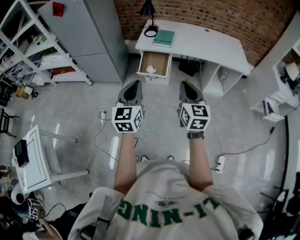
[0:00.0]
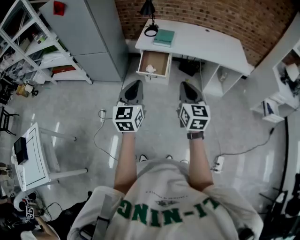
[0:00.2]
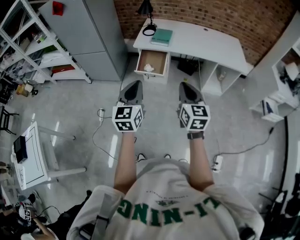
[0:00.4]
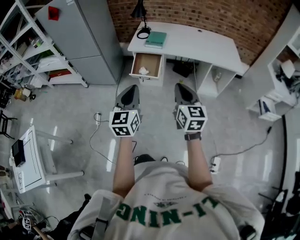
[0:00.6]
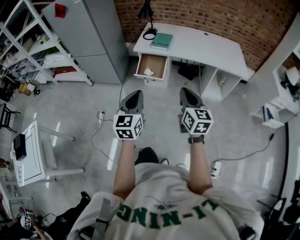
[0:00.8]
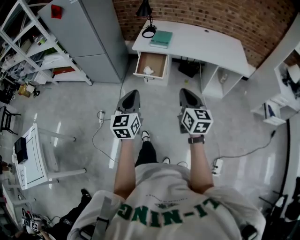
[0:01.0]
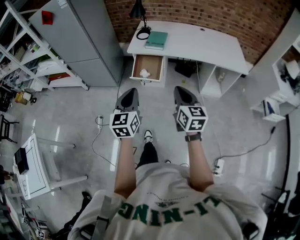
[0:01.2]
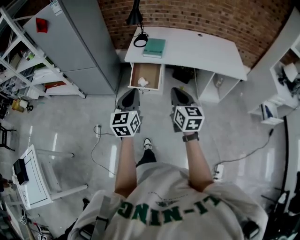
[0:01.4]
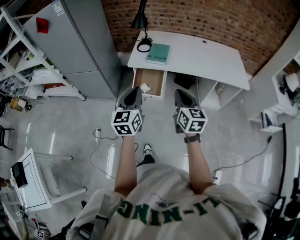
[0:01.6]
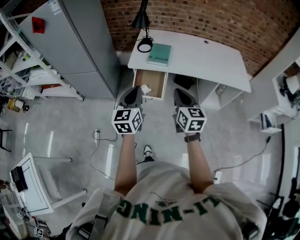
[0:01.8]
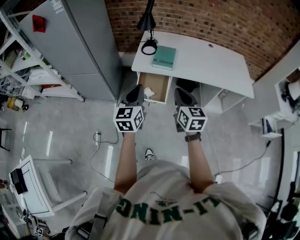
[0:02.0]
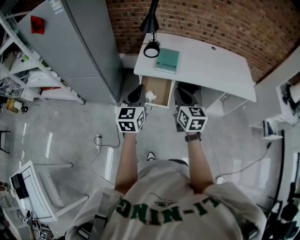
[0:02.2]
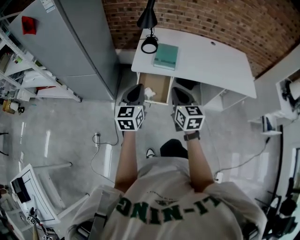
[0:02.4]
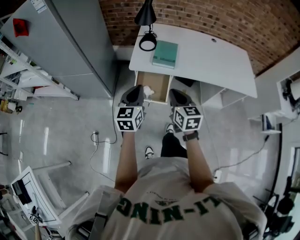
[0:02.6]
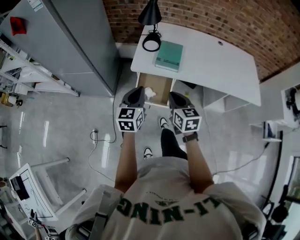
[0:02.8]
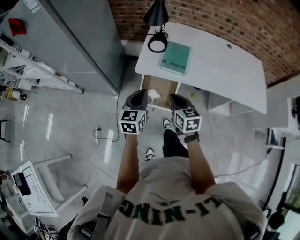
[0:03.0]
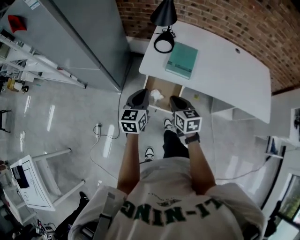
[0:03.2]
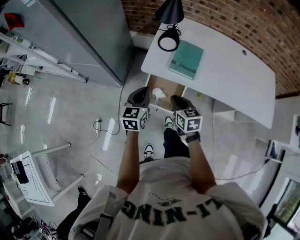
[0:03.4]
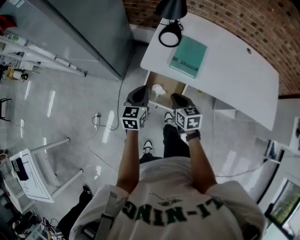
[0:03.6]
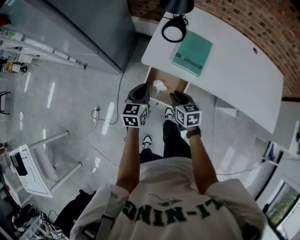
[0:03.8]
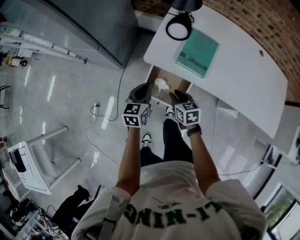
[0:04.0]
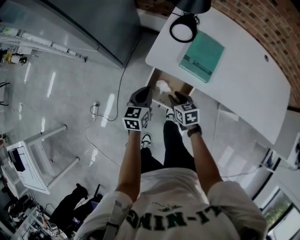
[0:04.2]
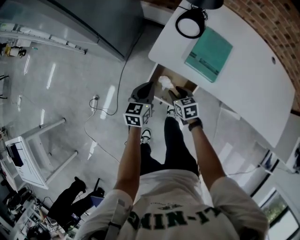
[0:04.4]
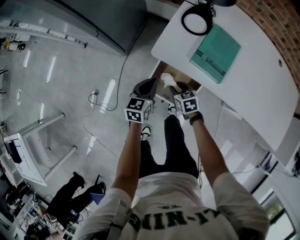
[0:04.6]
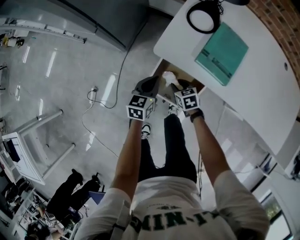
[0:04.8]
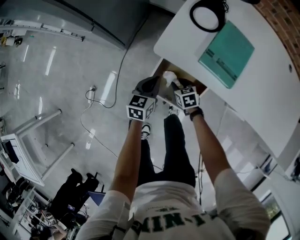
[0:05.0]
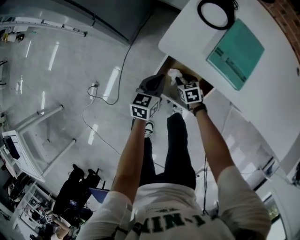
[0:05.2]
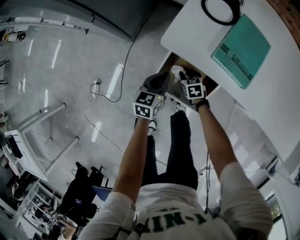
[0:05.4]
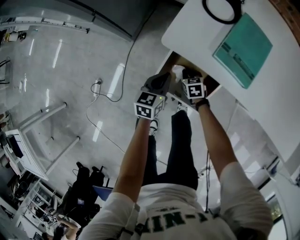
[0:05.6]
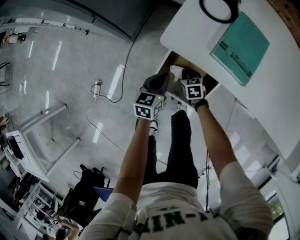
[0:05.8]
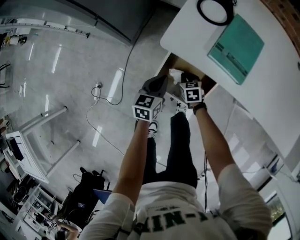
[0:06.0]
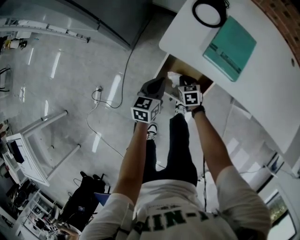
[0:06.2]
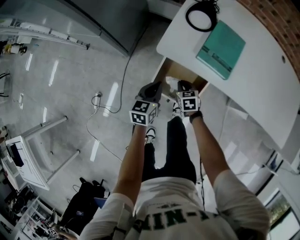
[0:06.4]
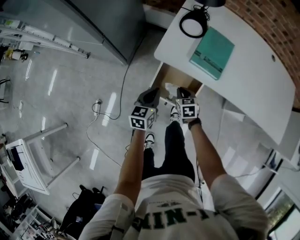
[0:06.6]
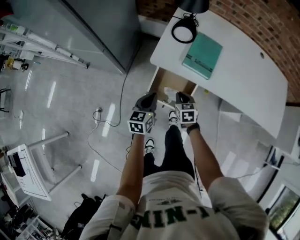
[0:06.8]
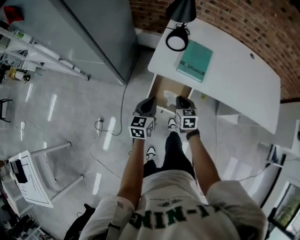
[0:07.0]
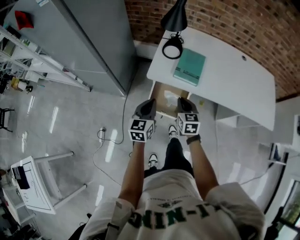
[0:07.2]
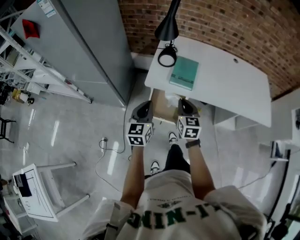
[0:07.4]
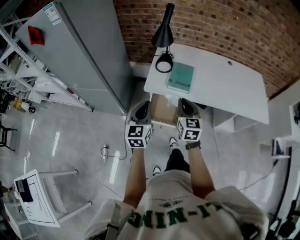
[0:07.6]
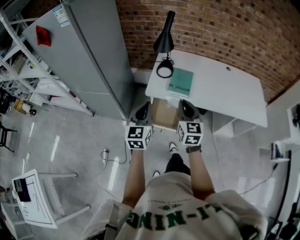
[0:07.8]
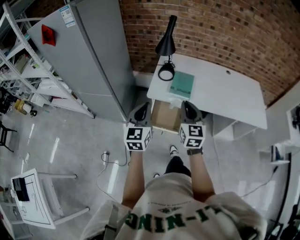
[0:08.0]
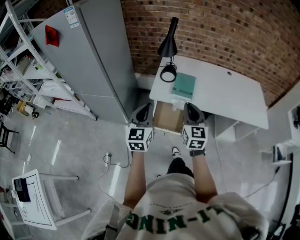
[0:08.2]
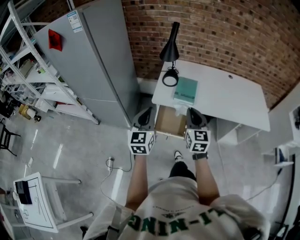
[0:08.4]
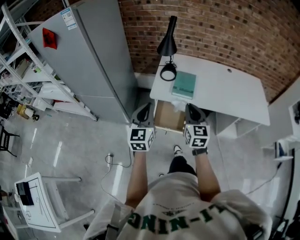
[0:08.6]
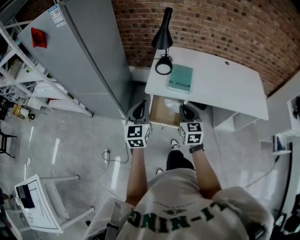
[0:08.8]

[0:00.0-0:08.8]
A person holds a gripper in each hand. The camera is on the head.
0:00.0 to 0:01.4: Both grippers move forward, about 10 cm.
0:01.4 to 0:03.0: The left gripper heads forward, covering some 35 cm, while the right gripper heads forward and downward, covering approximately 35 cm, and changes its angle by approximately 20 degrees.
0:03.0 to 0:04.4: The two grippers go roughly 25 cm downward and forward. The right gripper swivels some 30 degrees, and opens its fingers.
0:04.4 to 0:05.8: Both grippers travel together downward, roughly 15 cm. The right gripper closes its fingers.
0:05.8 to 0:07.4: The two grippers go some 40 cm upward. The left gripper changes its angle by some 30 degrees; the right gripper tips its fingers upward by about 40 degrees.
0:07.4 to 0:08.8: The left gripper travels upward by about 10 cm; the right gripper travels upward by about 5 cm.

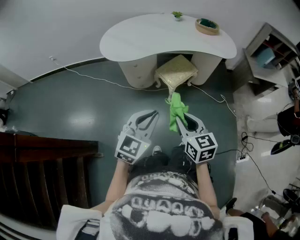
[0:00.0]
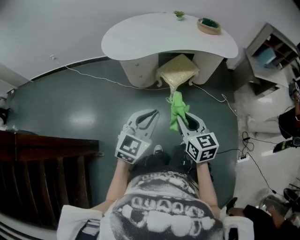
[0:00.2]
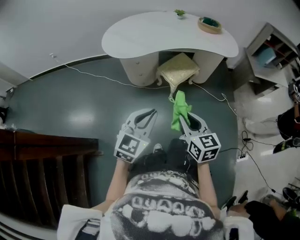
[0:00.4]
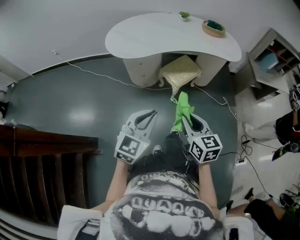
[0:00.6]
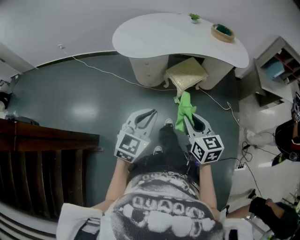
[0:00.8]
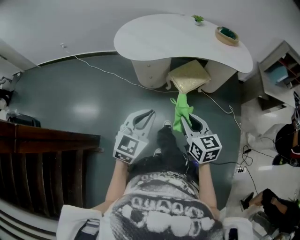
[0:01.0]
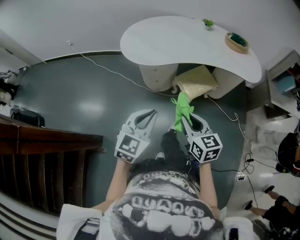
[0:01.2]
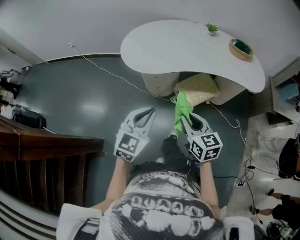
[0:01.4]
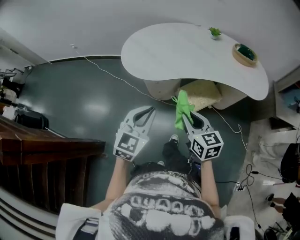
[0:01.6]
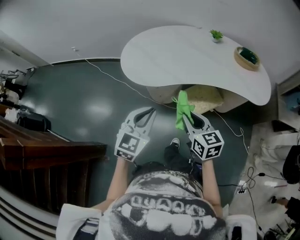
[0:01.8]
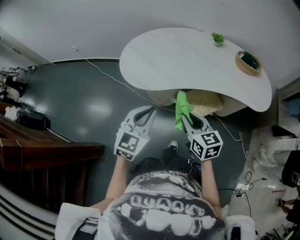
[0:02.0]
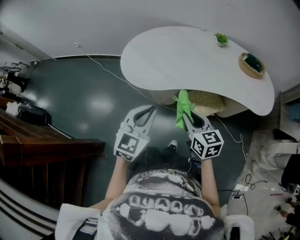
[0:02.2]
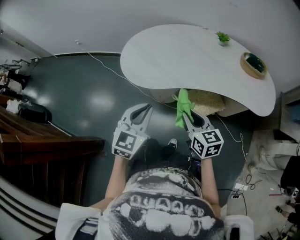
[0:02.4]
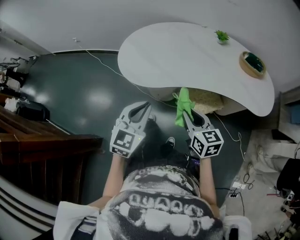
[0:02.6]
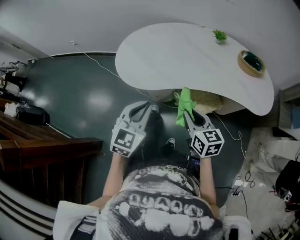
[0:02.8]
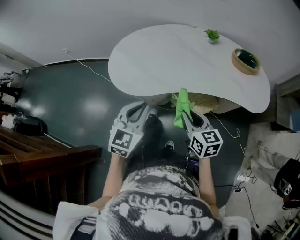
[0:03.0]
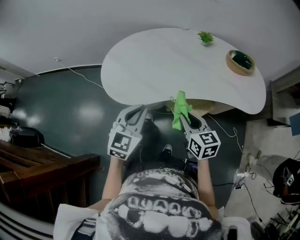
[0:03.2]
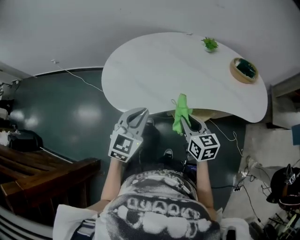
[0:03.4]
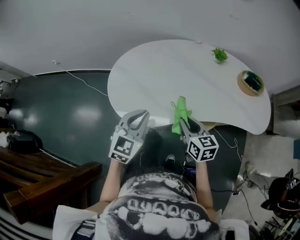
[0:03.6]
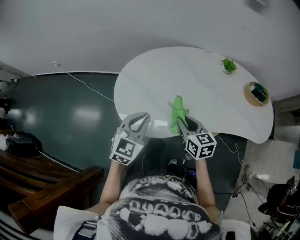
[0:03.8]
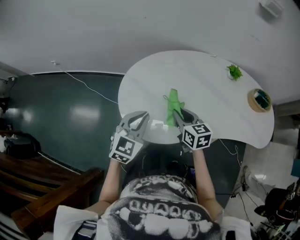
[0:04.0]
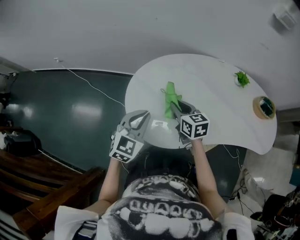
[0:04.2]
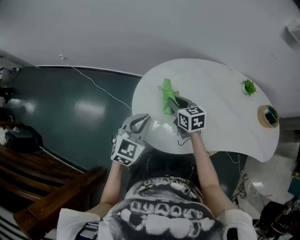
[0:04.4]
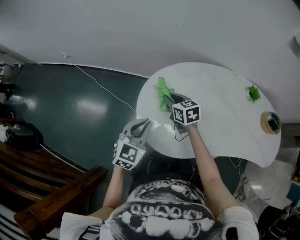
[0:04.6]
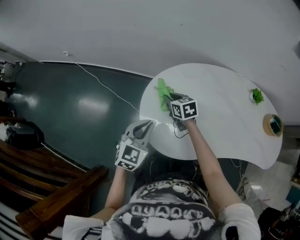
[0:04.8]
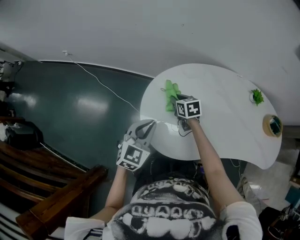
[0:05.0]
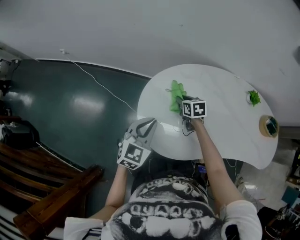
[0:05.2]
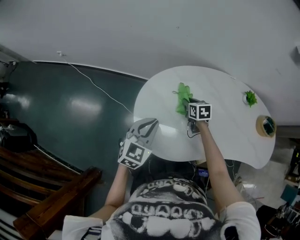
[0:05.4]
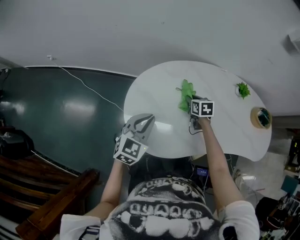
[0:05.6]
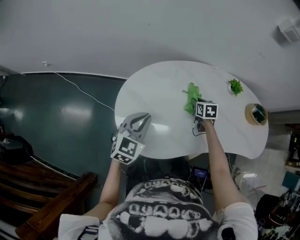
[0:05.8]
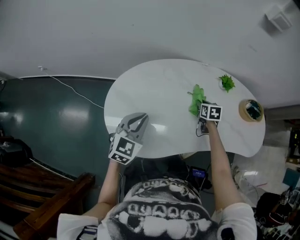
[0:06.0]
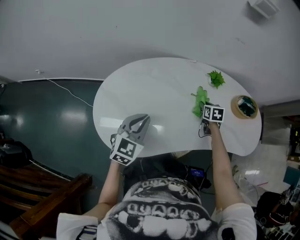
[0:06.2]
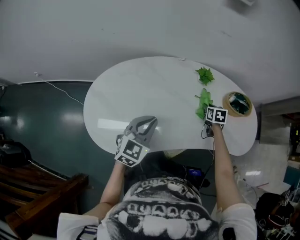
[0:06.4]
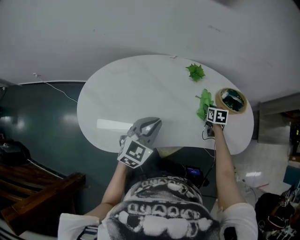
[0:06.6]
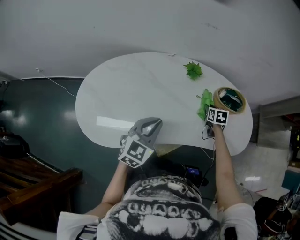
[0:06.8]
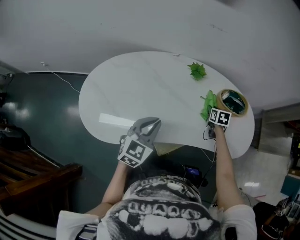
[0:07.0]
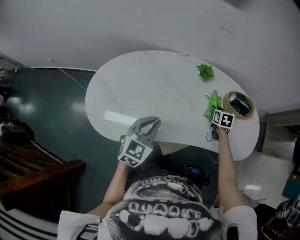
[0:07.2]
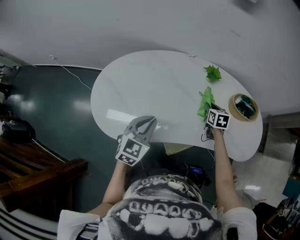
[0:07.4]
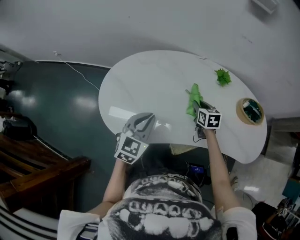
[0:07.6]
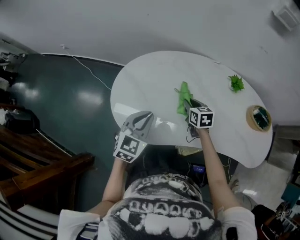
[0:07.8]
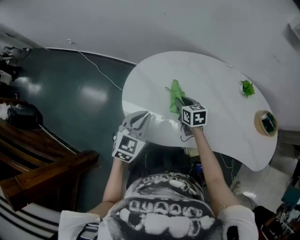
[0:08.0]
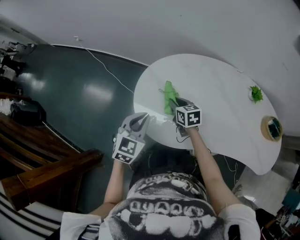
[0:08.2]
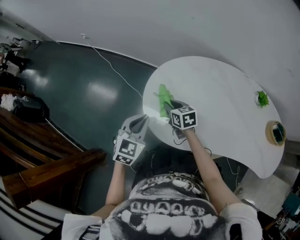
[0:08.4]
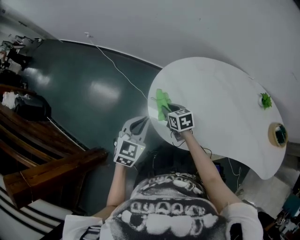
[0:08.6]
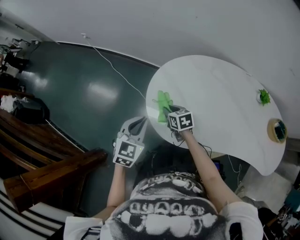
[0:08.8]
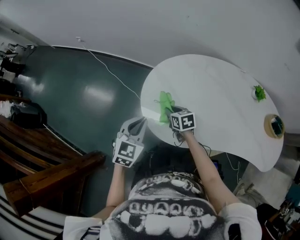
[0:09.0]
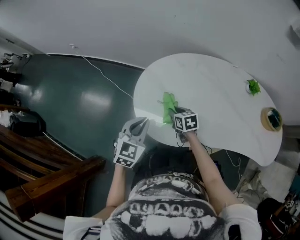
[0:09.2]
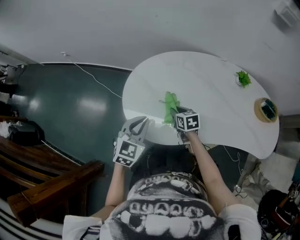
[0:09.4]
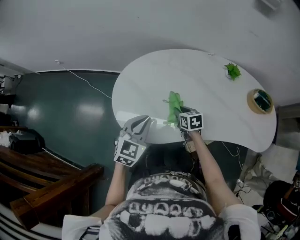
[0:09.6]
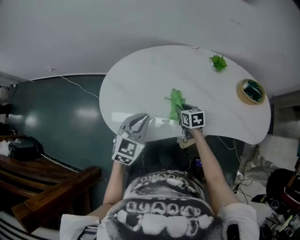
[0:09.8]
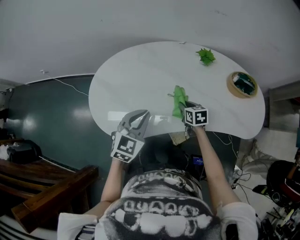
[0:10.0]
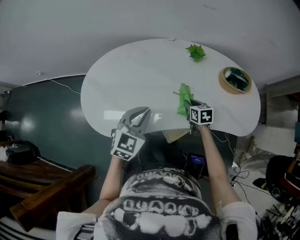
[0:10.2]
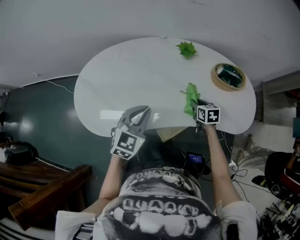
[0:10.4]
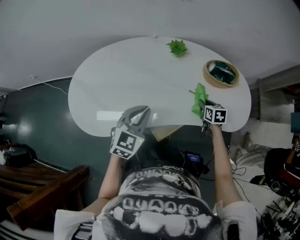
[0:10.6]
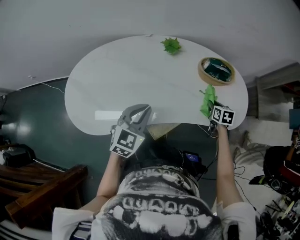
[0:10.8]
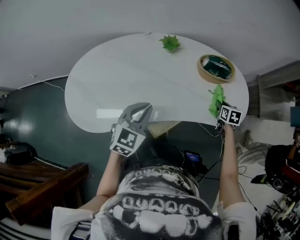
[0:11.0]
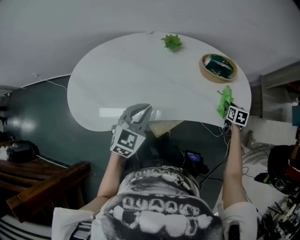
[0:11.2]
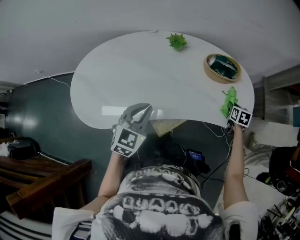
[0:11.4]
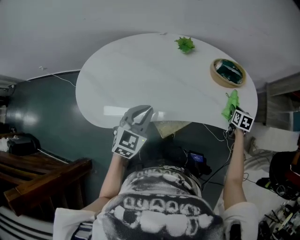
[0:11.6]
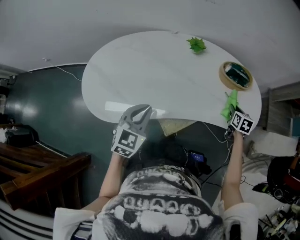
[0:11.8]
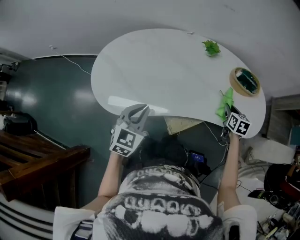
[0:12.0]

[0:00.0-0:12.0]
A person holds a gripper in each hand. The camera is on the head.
0:00.0 to 0:01.6: Both grippers move forward, some 25 cm.
0:01.6 to 0:03.0: The left gripper goes some 15 cm forward. Meanwhile the right gripper is displaced forward and to the right by roughly 15 cm.
0:03.0 to 0:04.4: The grippers both shift forward and to the left by about 40 cm.
0:04.4 to 0:06.0: The left gripper travels to the right by some 15 cm; the right gripper is displaced to the right by roughly 35 cm, and changes its angle by about 30 degrees.
0:06.0 to 0:07.6: The right gripper moves roughly 30 cm to the right and comes back. The left gripper moves to the right, roughly 15 cm.
0:07.6 to 0:09.0: The right gripper moves approximately 40 cm, and changes its angle by approximately 20 degrees. Meanwhile the left gripper changes place by some 30 cm.
0:09.0 to 0:10.4: The pair of grippers is taken some 50 cm. The right gripper changes its angle by about 30 degrees. The left gripper swivels some 30 degrees.
0:10.4 to 0:12.0: The right gripper travels upward by approximately 5 cm, and goes to the right and returns, about 30 cm each way, while the left gripper heads backward and to the left, covering approximately 15 cm.

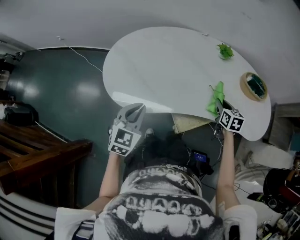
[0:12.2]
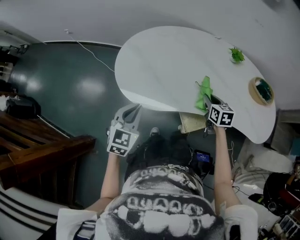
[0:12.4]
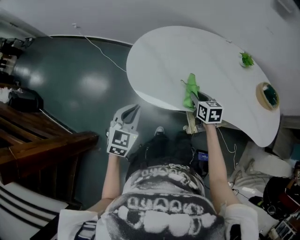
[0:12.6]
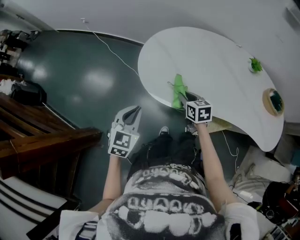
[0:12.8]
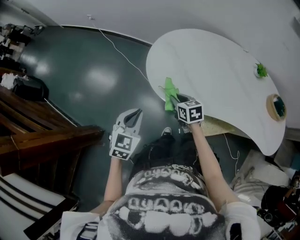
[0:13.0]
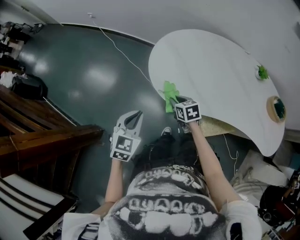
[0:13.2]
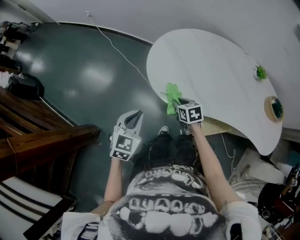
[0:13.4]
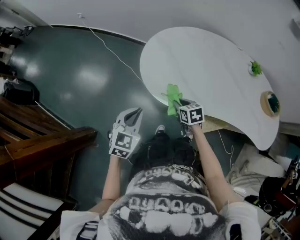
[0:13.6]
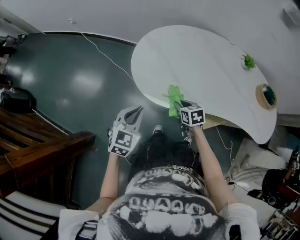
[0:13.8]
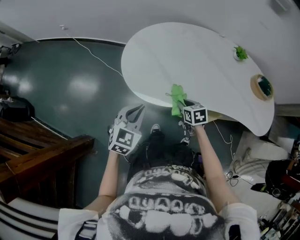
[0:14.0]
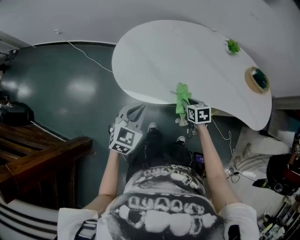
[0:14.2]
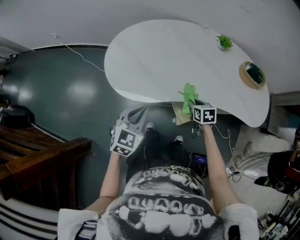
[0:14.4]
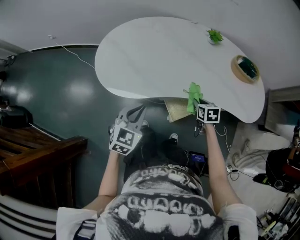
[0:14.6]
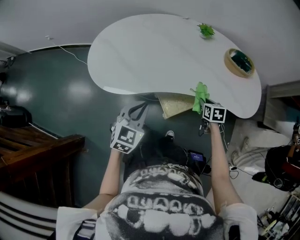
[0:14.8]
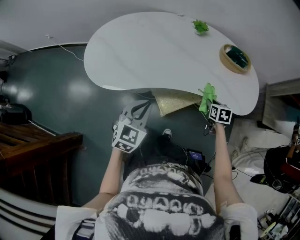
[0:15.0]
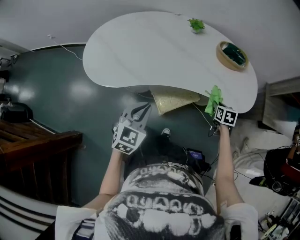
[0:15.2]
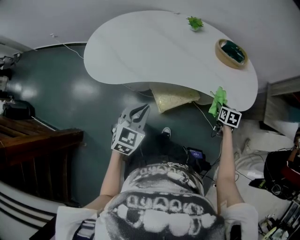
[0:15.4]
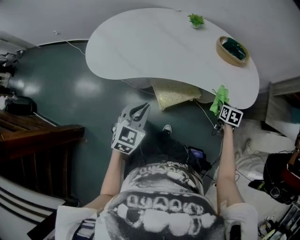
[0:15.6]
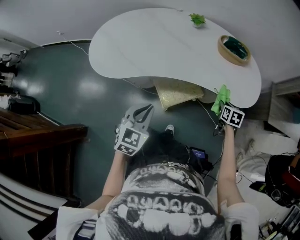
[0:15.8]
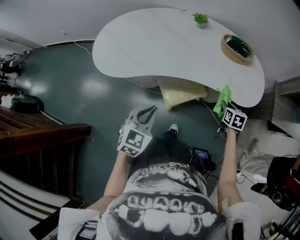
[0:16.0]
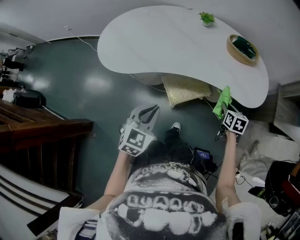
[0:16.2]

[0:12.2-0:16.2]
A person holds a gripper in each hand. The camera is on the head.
0:12.2 to 0:13.6: The left gripper moves about 25 cm; the right gripper moves roughly 50 cm, and swivels approximately 30 degrees.
0:13.6 to 0:14.8: The right gripper changes place by approximately 50 cm, and rotates some 30 degrees. The left gripper ends up about 30 cm from where it was.
0:14.8 to 0:16.2: The grippers both shift to the right by roughly 20 cm.
